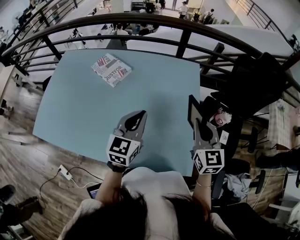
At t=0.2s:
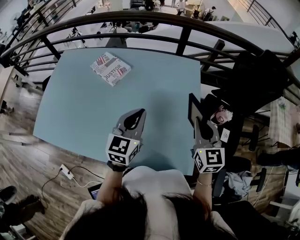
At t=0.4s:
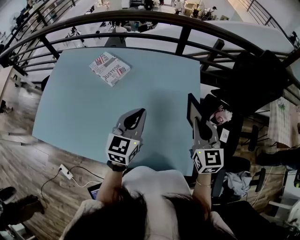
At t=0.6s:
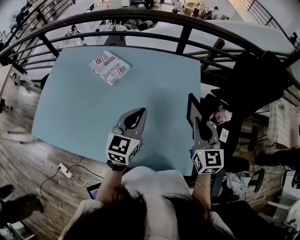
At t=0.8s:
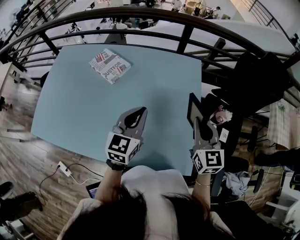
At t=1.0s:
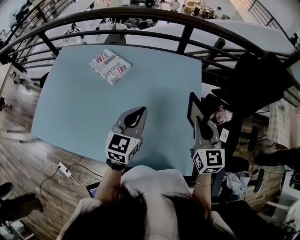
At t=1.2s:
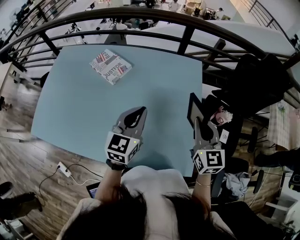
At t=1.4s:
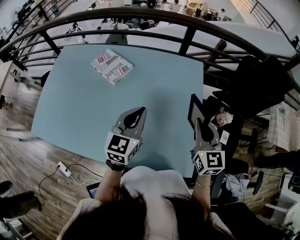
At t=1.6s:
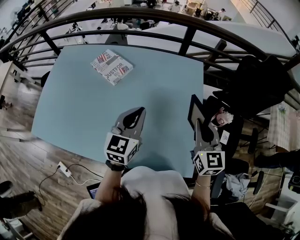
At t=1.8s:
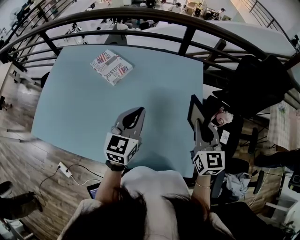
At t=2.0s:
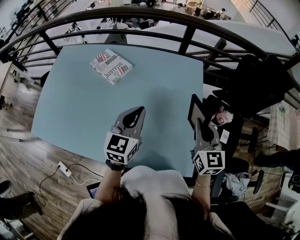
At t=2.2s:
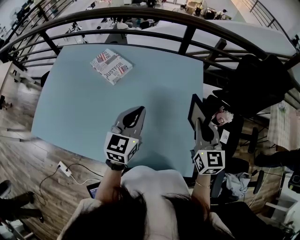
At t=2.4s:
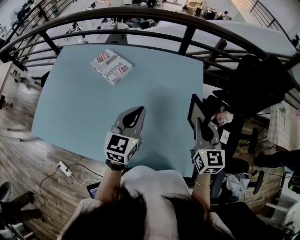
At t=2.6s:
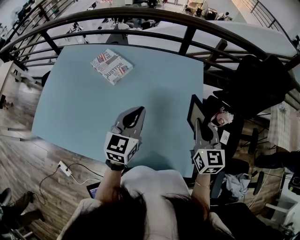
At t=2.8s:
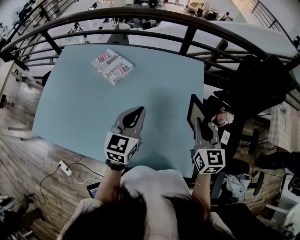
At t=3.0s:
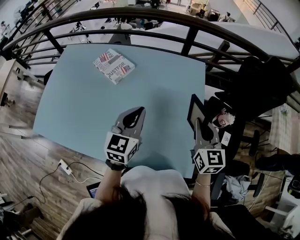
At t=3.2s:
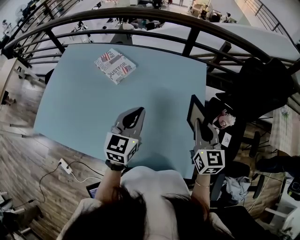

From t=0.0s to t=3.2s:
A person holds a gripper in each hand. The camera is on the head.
From t=0.0s to t=1.6s: The grippers move only a little.
From t=1.6s to t=3.2s: Both grippers stay about where they are.

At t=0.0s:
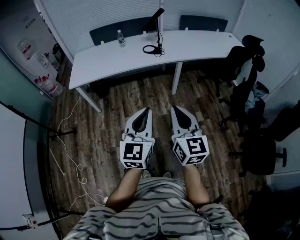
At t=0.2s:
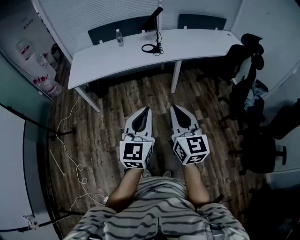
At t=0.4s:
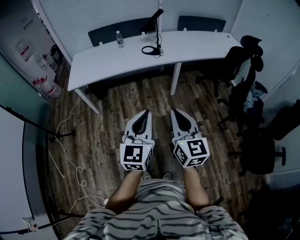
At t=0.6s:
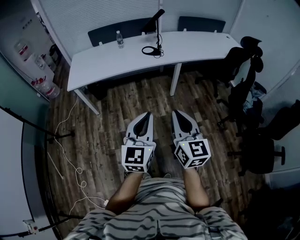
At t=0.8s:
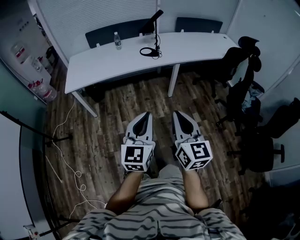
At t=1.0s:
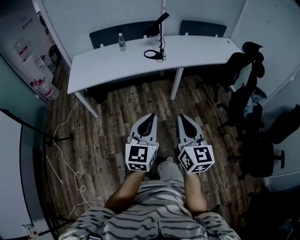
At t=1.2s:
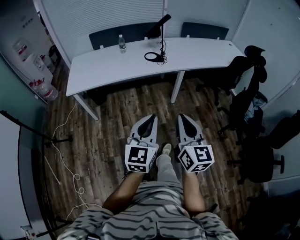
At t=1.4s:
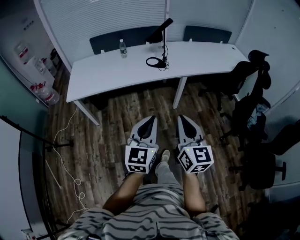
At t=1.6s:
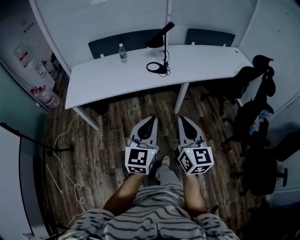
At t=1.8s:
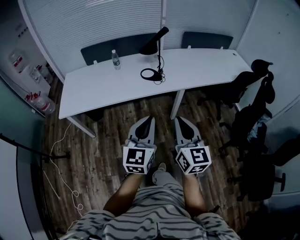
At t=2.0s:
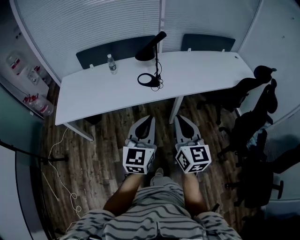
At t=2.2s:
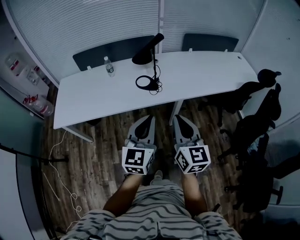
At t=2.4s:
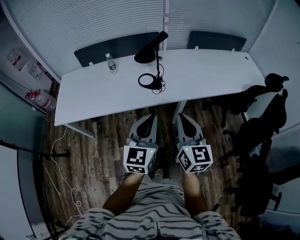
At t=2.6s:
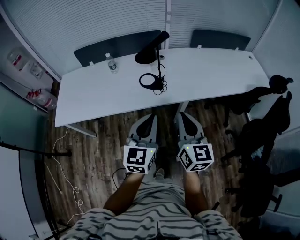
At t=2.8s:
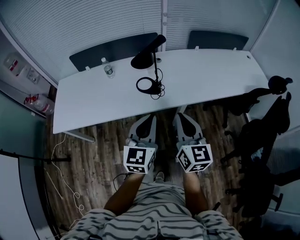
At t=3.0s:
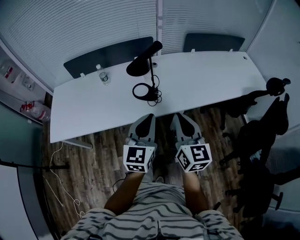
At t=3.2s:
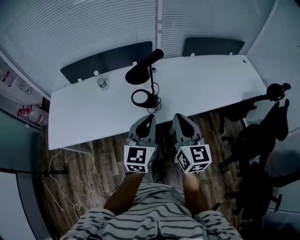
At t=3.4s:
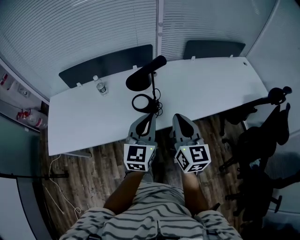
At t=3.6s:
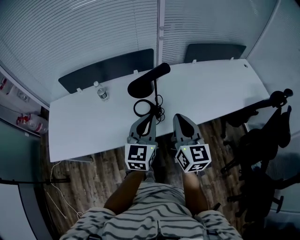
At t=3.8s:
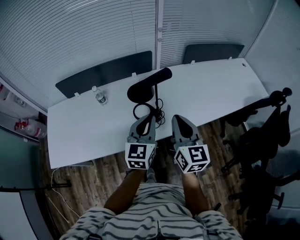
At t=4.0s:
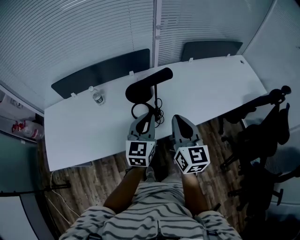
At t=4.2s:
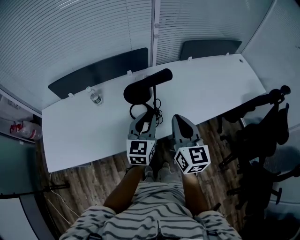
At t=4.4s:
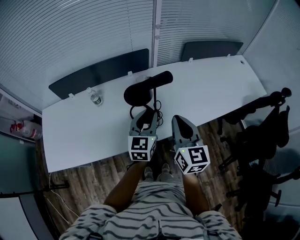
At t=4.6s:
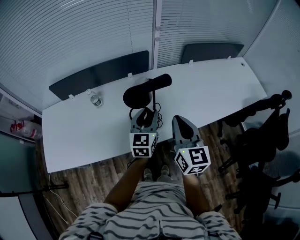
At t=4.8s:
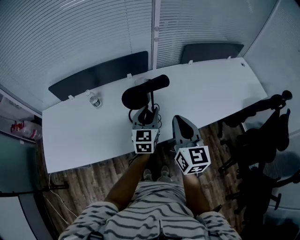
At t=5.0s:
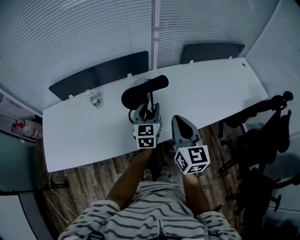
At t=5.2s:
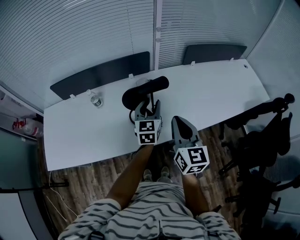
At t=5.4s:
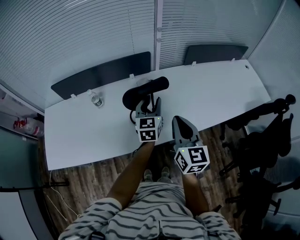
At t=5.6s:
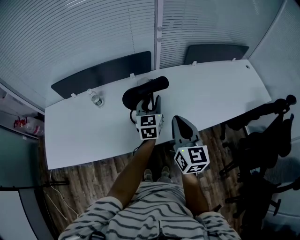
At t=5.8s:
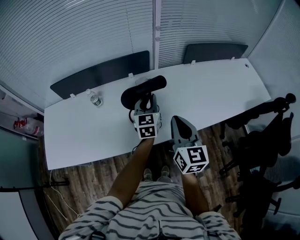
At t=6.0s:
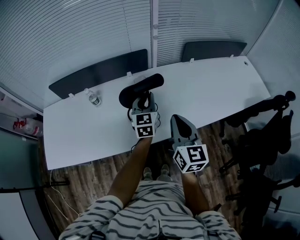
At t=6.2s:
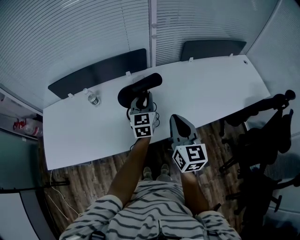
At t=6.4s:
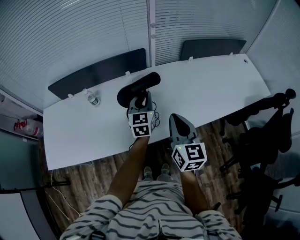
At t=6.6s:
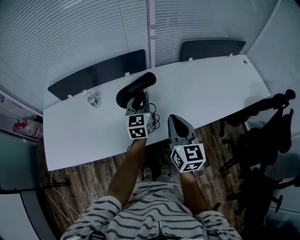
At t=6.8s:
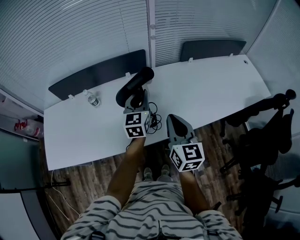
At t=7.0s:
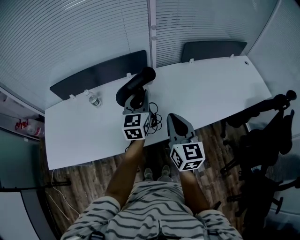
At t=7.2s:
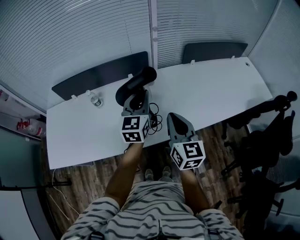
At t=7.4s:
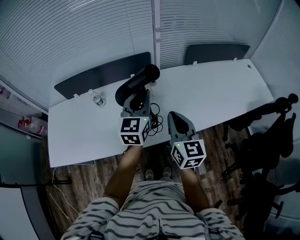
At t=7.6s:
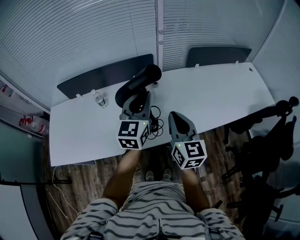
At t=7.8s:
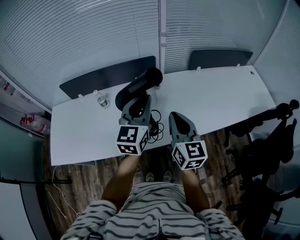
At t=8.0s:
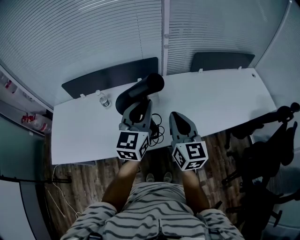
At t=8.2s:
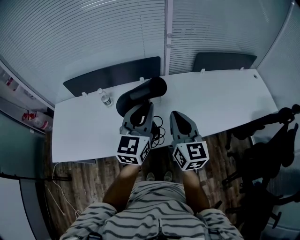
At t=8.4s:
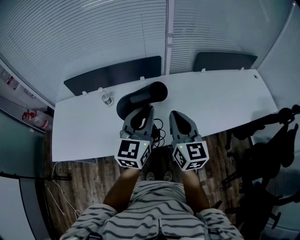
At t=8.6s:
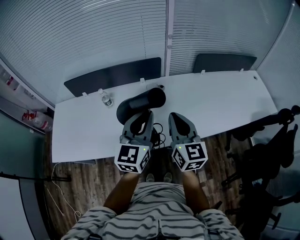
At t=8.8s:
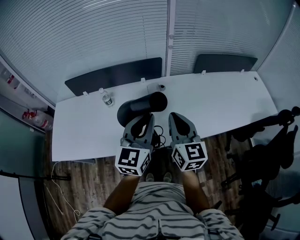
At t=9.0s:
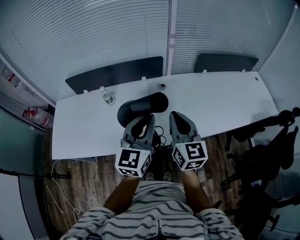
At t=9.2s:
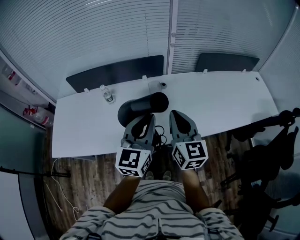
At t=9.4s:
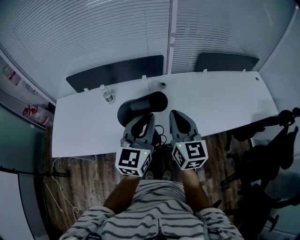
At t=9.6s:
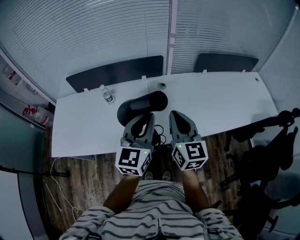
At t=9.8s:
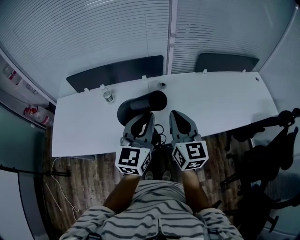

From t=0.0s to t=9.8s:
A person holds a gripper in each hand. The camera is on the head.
From t=0.0s to t=1.4s: The two grippers go about 15 cm forward.
From t=1.4s to t=2.8s: Both grippers are carried forward, approximately 40 cm.
From t=2.8s to t=4.2s: The two grippers go some 25 cm forward.
From t=4.2s to t=5.6s: The left gripper moves forward, approximately 15 cm.
From t=5.6s to t=7.0s: The left gripper moves upward, some 5 cm, and closes.
From t=7.0s to t=8.4s: The right gripper ends up approximately 5 cm from where it was, while the left gripper goes about 15 cm backward and upward.
From t=8.4s to t=9.8s: The grippers move only a little.

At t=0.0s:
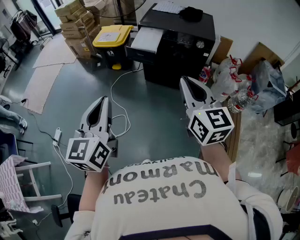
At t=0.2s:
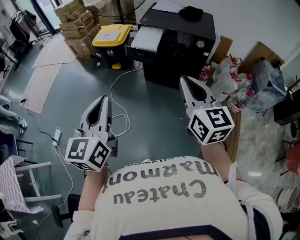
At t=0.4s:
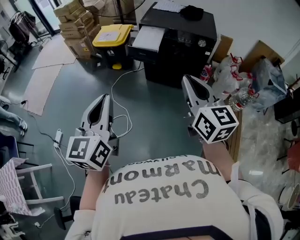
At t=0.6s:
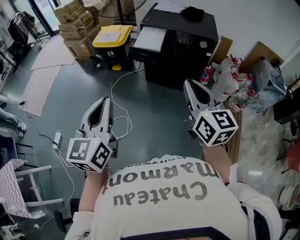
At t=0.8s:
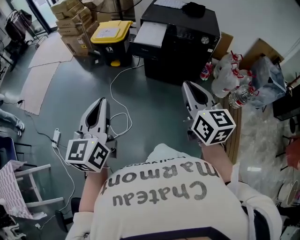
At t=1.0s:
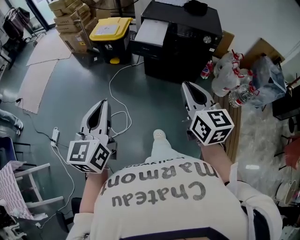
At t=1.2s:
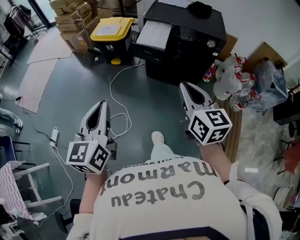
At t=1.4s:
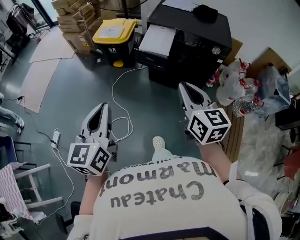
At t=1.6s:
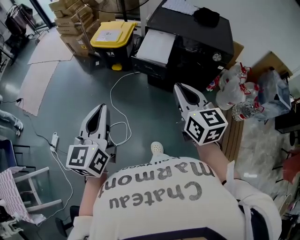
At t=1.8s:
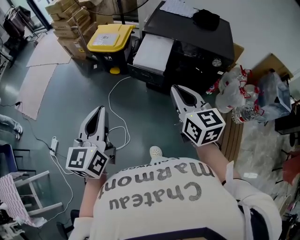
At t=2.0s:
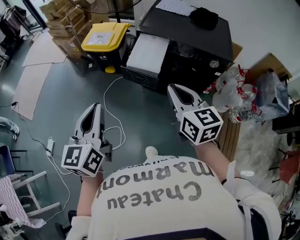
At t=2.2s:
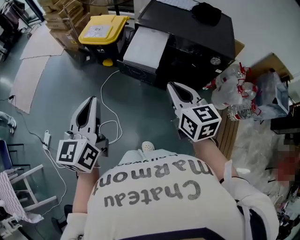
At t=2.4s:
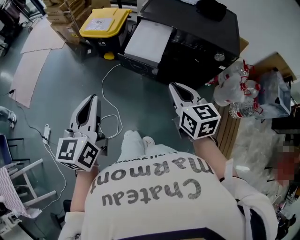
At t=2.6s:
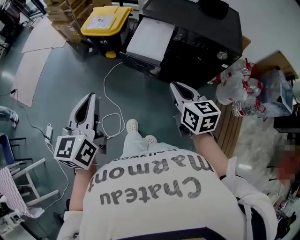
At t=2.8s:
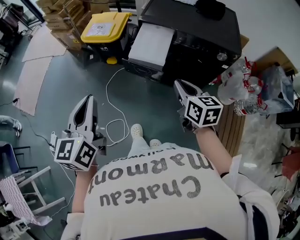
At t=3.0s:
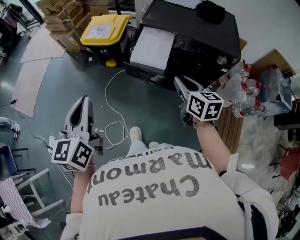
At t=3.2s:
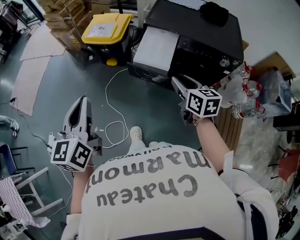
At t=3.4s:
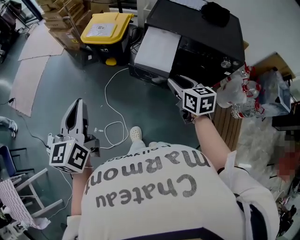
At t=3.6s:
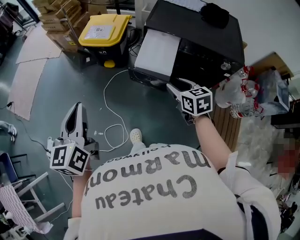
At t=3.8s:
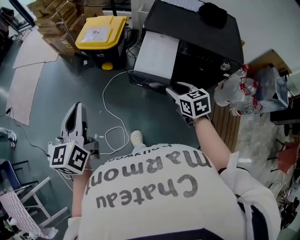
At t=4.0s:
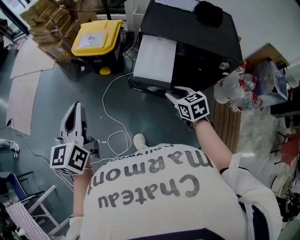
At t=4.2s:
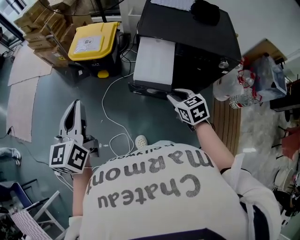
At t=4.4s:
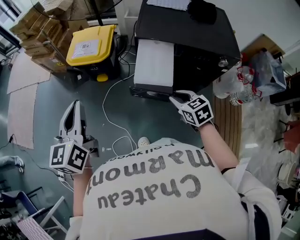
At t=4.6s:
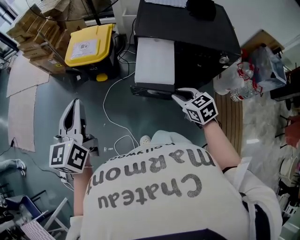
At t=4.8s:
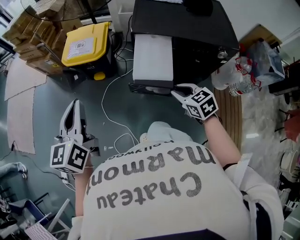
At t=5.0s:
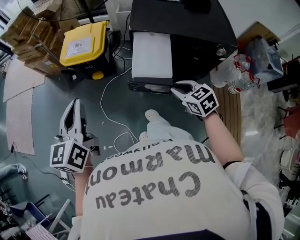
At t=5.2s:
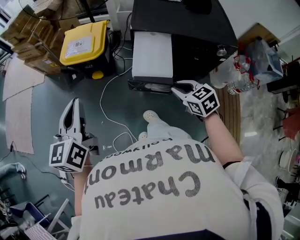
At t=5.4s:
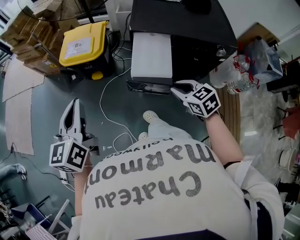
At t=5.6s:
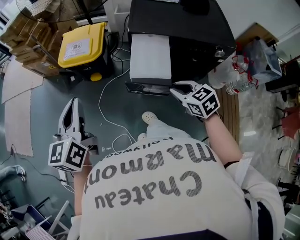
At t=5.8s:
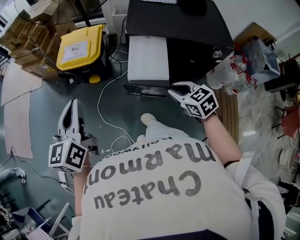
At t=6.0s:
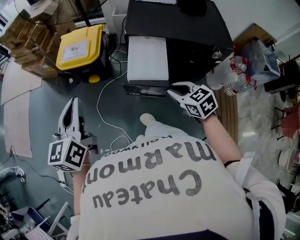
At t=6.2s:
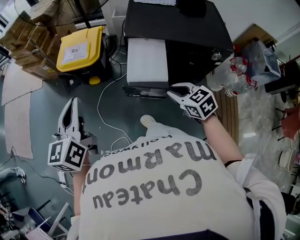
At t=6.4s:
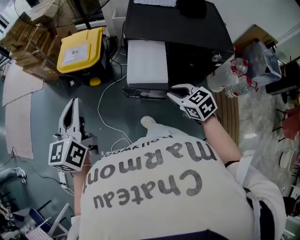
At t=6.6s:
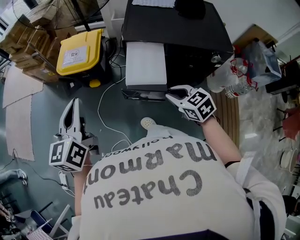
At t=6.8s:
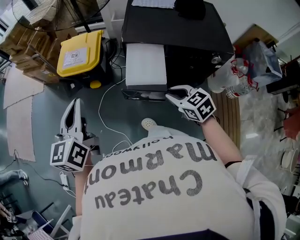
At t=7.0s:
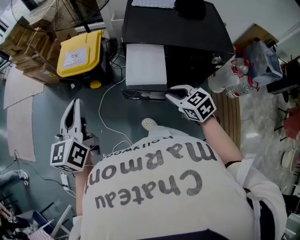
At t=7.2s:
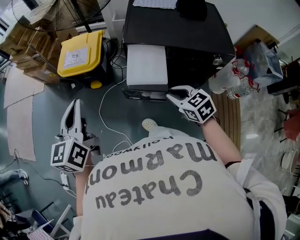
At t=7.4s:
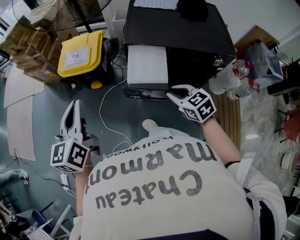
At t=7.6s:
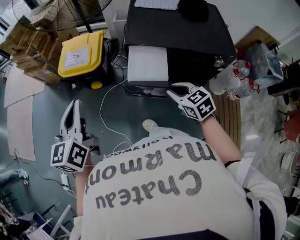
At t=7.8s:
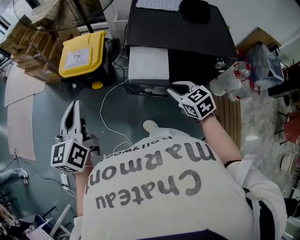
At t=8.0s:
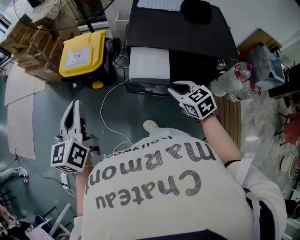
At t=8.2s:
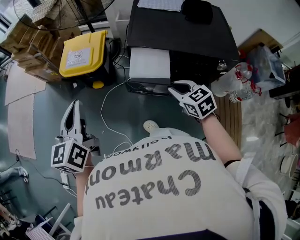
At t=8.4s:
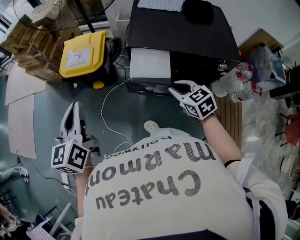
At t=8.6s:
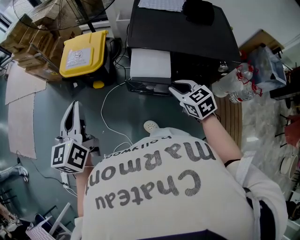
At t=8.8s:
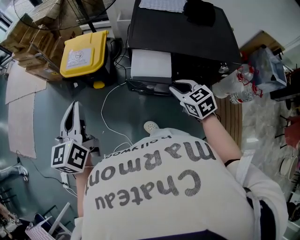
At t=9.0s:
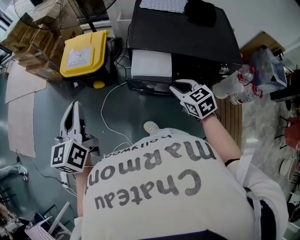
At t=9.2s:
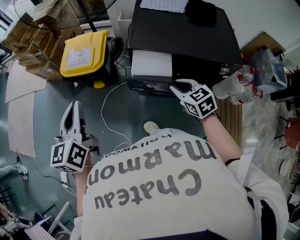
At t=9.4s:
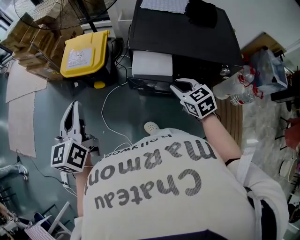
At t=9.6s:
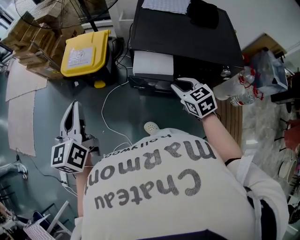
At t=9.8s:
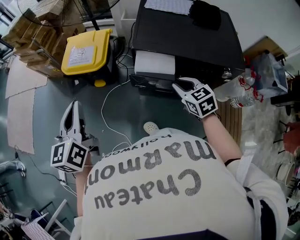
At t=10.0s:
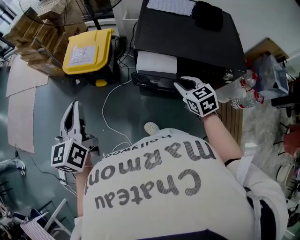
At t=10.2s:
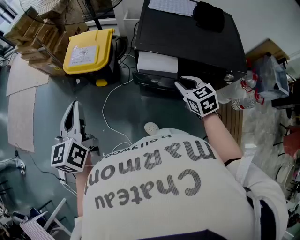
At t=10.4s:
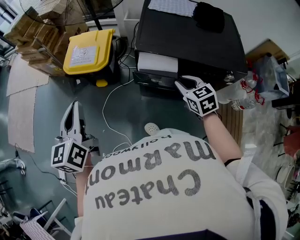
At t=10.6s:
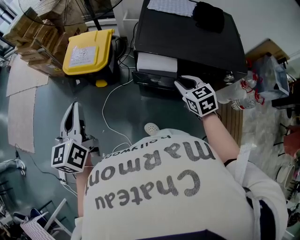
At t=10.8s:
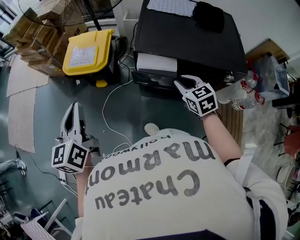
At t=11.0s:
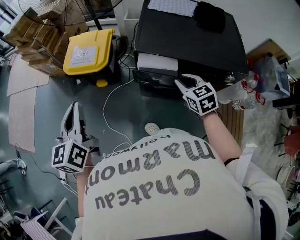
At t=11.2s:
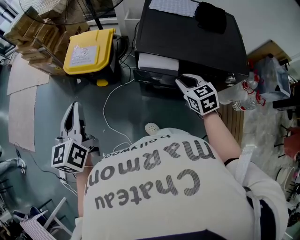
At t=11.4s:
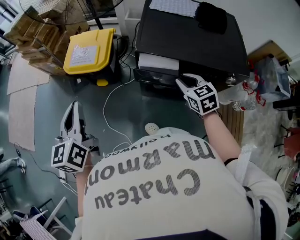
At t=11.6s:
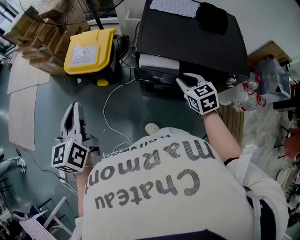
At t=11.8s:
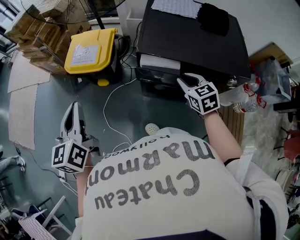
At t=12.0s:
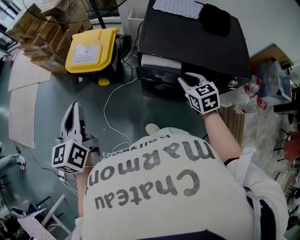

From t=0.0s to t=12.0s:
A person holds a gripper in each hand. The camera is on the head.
From t=0.0s to t=1.6s: The right gripper moves forward and downward, roughly 20 cm. Meanwhile the left gripper travels forward by roughly 15 cm.
From t=1.6s to t=3.0s: The left gripper goes approximately 15 cm forward, while the right gripper heads forward, downward and to the right, covering roughly 20 cm.
From t=3.0s to t=4.4s: The right gripper moves downward and forward, roughly 10 cm, and swivels some 30 degrees. Meanwhile the left gripper goes approximately 15 cm forward.
From t=4.4s to t=6.0s: There are only small adjustments of the grippers.
From t=6.0s to t=7.6s: The right gripper moves some 5 cm.
From t=7.6s to t=9.0s: The grippers move only a little.
From t=9.0s to t=10.4s: There are only small adjustments of the grippers.
From t=10.4s to t=12.0s: The grippers make only small movements.
